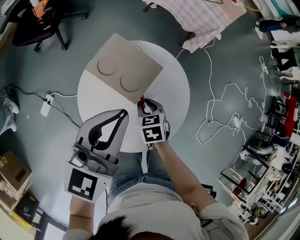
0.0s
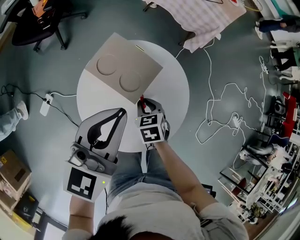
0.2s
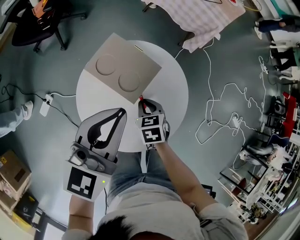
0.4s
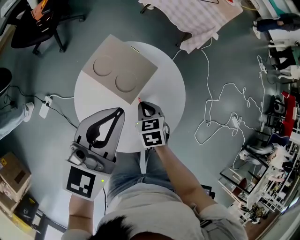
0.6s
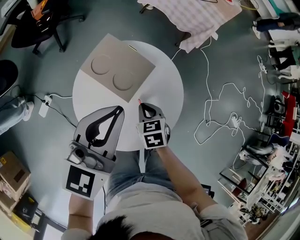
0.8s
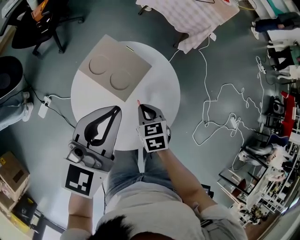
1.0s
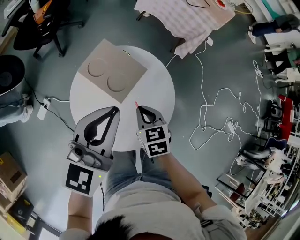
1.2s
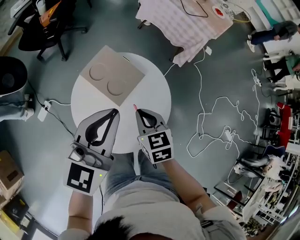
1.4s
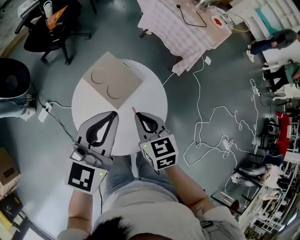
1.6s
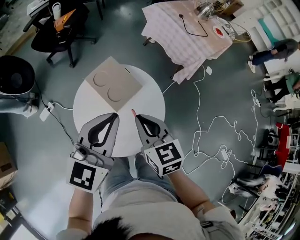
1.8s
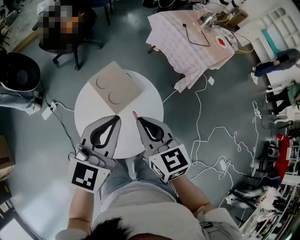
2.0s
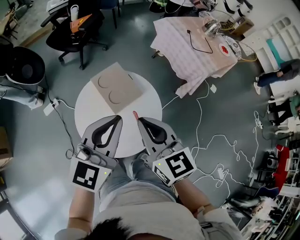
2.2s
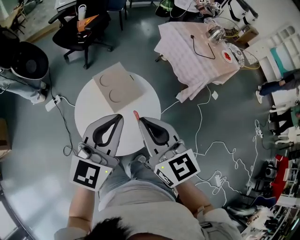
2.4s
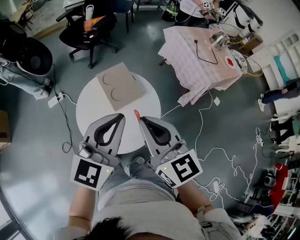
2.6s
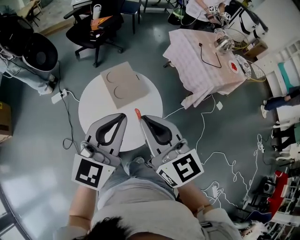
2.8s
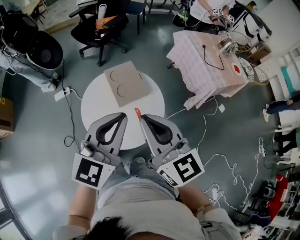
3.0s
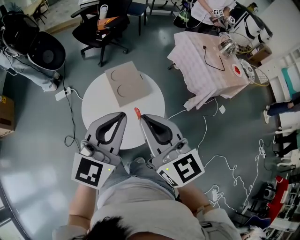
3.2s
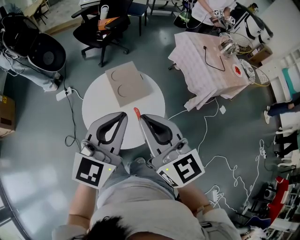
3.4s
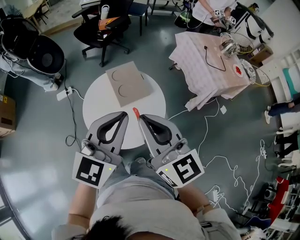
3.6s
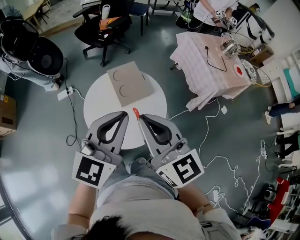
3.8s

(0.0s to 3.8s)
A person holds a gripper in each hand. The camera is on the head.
0.0s - 1.2s: The right gripper goes some 10 cm upward.
1.2s - 2.6s: The left gripper moves about 15 cm, and swivels some 30 degrees. The right gripper goes approximately 30 cm upward, and tilts its fingers roughly 40 degrees upward.
2.6s - 3.8s: The grippers move only a little.

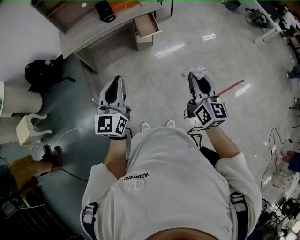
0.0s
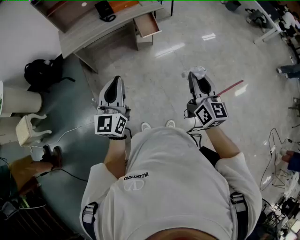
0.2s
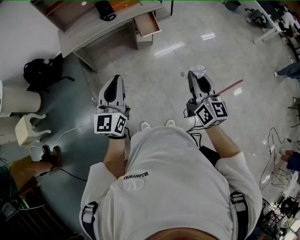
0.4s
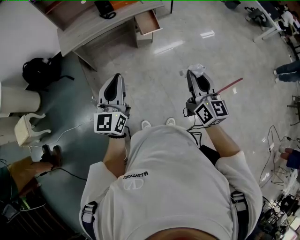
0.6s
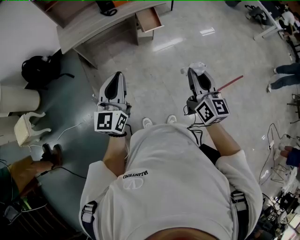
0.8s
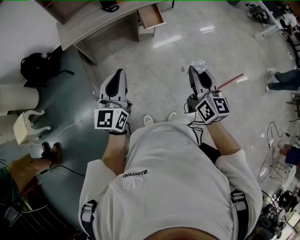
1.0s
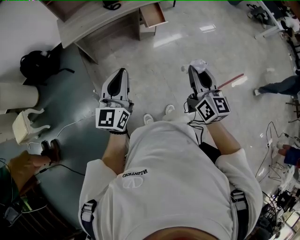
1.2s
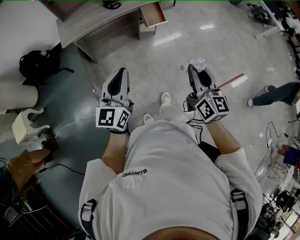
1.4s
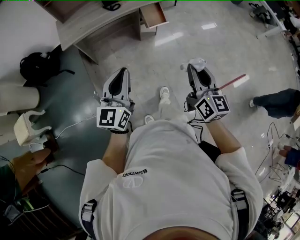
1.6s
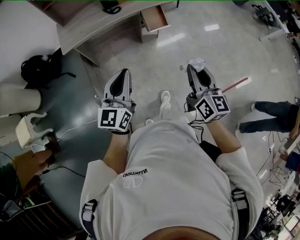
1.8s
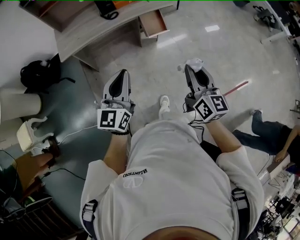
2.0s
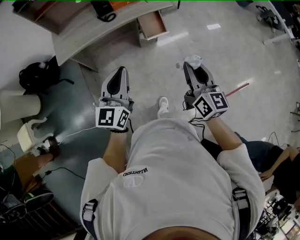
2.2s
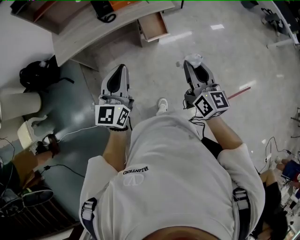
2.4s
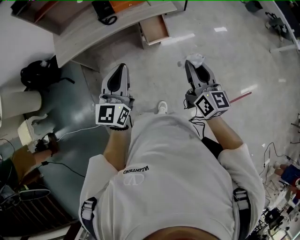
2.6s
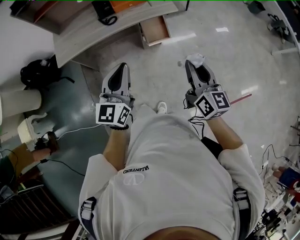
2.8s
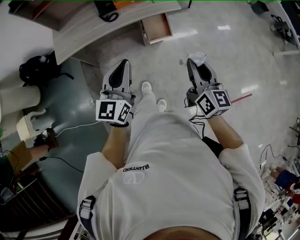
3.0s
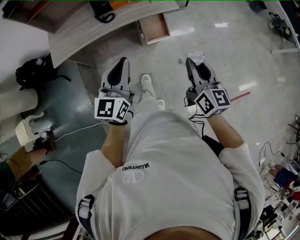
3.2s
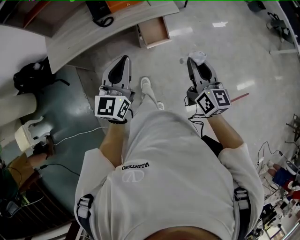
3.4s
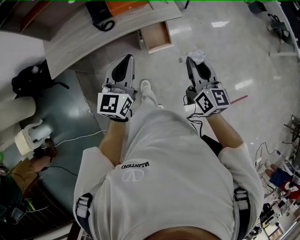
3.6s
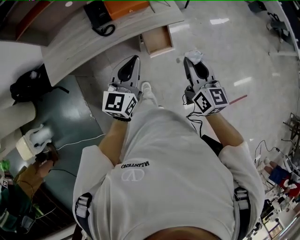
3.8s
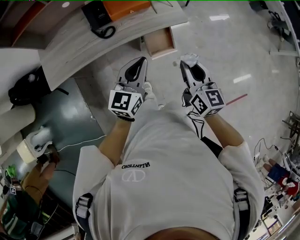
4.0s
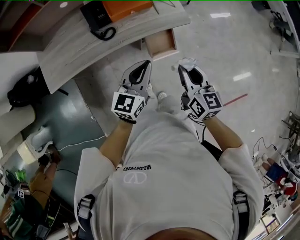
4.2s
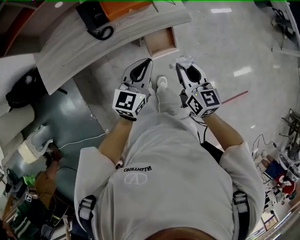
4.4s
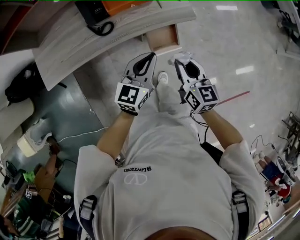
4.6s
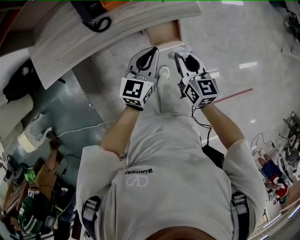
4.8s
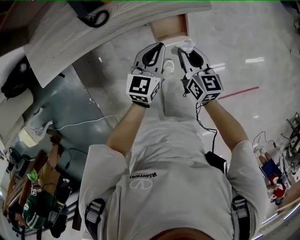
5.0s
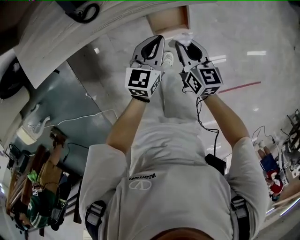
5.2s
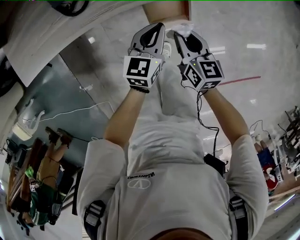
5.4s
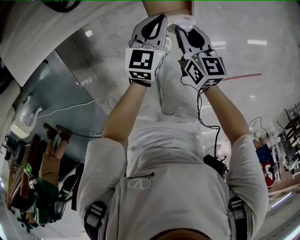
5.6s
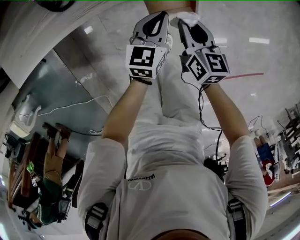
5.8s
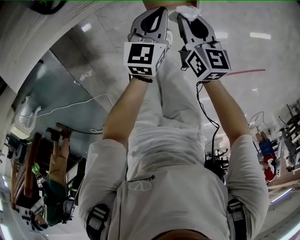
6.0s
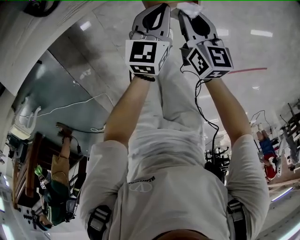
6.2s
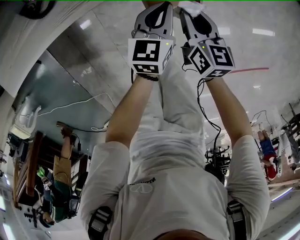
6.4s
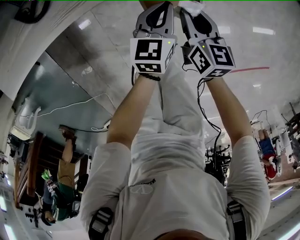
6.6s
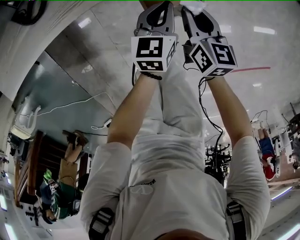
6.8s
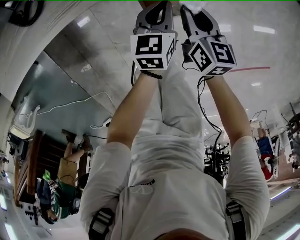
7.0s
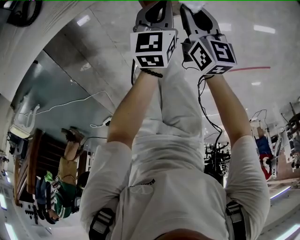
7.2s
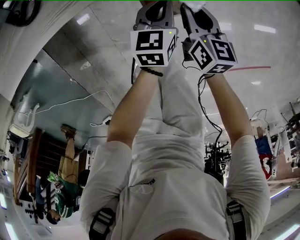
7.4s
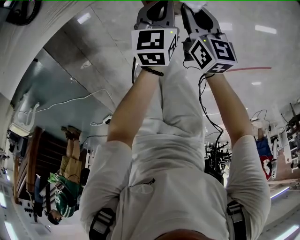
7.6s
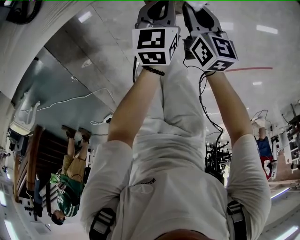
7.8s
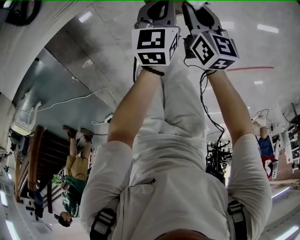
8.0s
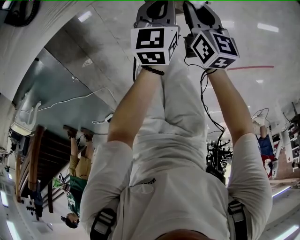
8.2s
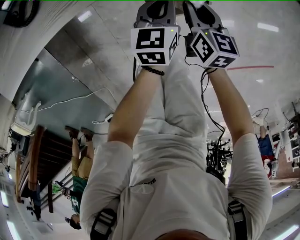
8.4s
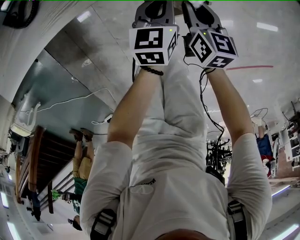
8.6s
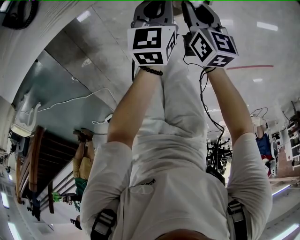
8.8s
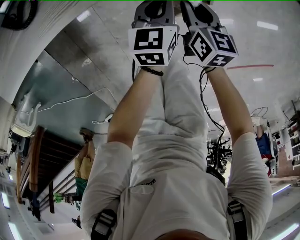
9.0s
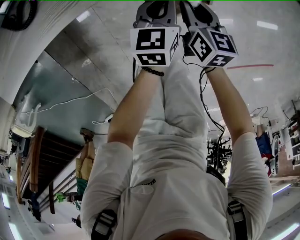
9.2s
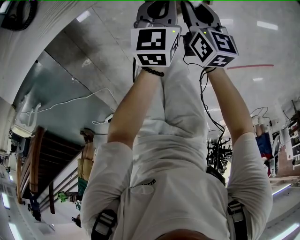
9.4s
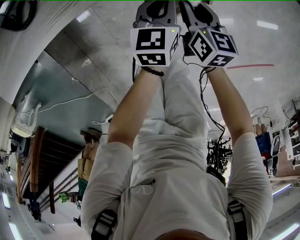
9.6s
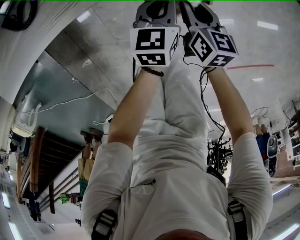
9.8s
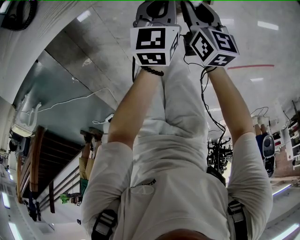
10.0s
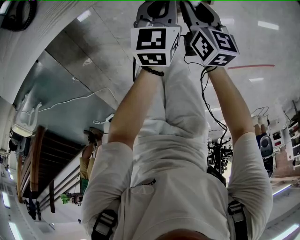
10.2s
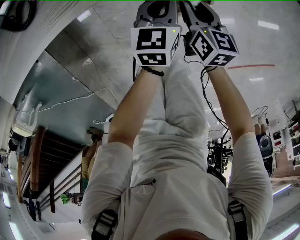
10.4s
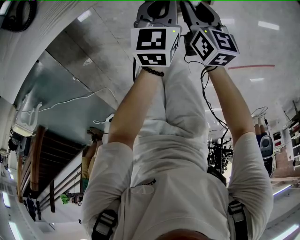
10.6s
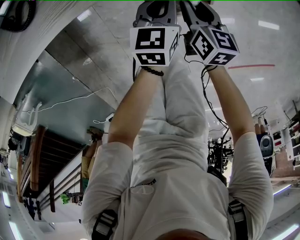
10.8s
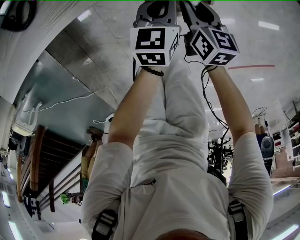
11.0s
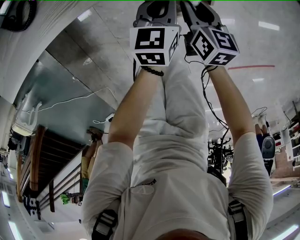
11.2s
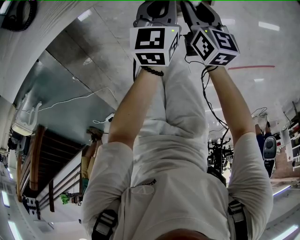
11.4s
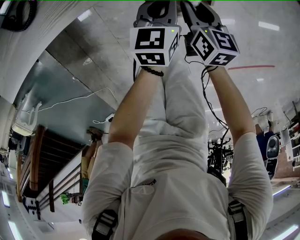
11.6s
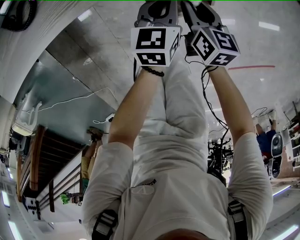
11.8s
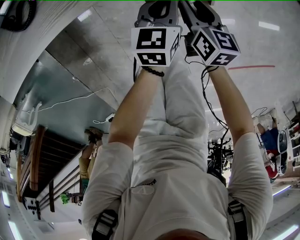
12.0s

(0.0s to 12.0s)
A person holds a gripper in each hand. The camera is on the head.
0.0s - 1.6s: The left gripper shifts roughly 5 cm to the left, while the right gripper is displaced to the left and forward by roughly 10 cm.
1.6s - 3.0s: Both grippers travel together forward, approximately 30 cm.
3.0s - 4.4s: The left gripper heads forward and downward, covering approximately 30 cm, and swivels approximately 20 degrees, while the right gripper shifts some 30 cm forward, downward and to the left.
4.4s - 6.0s: The grippers both shift downward by roughly 30 cm. The left gripper swivels approximately 20 degrees.
6.0s - 7.6s: Both grippers move downward, some 10 cm.
7.6s - 9.0s: The grippers make only small movements.
9.0s - 12.0s: Both grippers stay put.

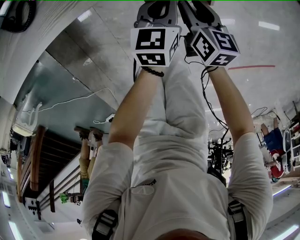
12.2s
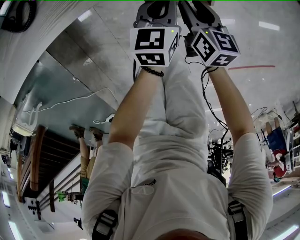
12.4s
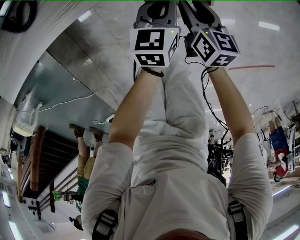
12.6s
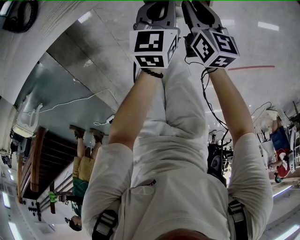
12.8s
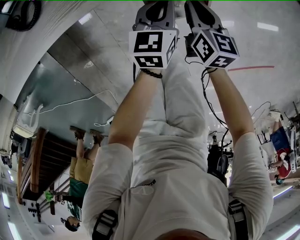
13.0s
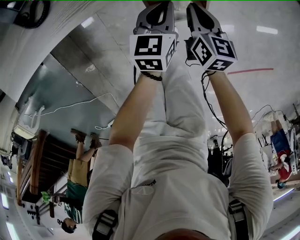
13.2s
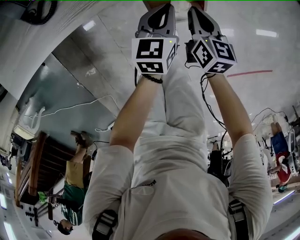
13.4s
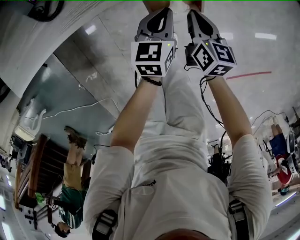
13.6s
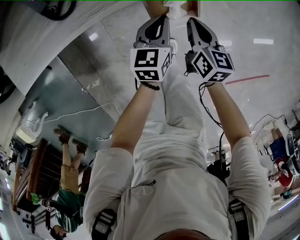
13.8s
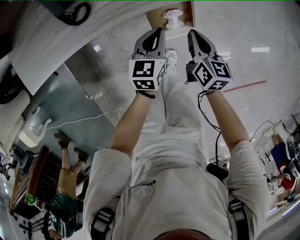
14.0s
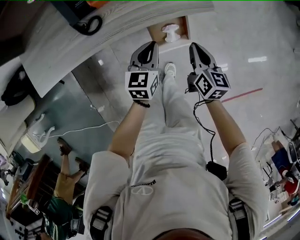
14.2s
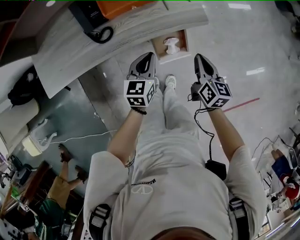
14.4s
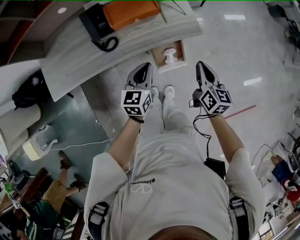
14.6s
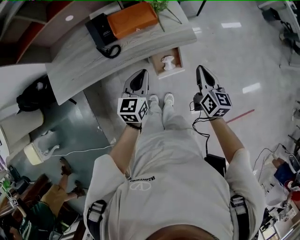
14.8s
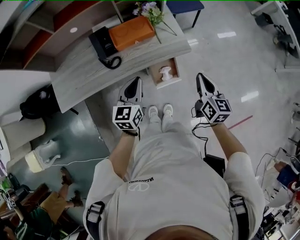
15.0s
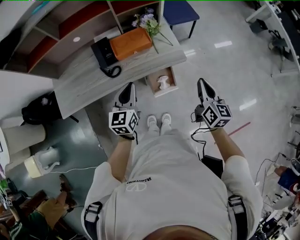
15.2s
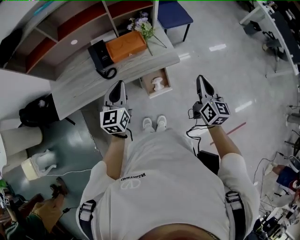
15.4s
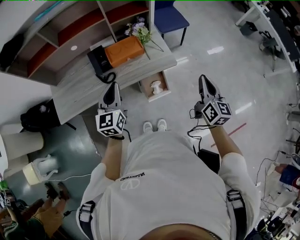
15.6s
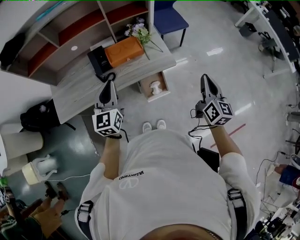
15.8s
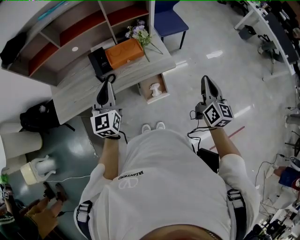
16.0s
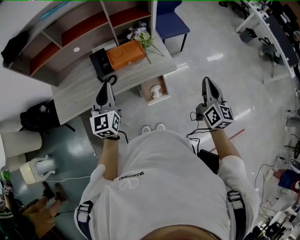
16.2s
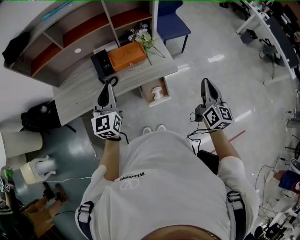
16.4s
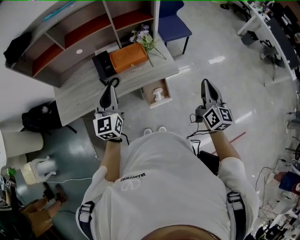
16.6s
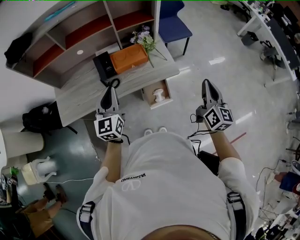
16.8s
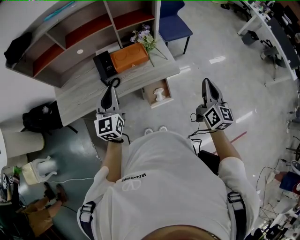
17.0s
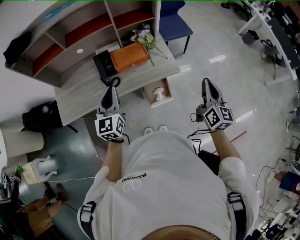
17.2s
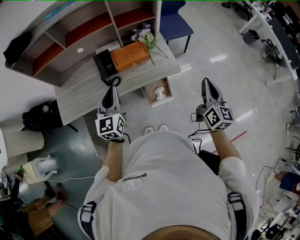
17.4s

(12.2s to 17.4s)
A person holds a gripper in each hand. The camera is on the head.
12.2s - 14.0s: The two grippers go approximately 15 cm upward. The right gripper closes up.
14.0s - 15.6s: The two grippers go approximately 40 cm upward. The right gripper changes its angle by approximately 30 degrees; the left gripper rotates some 30 degrees.
15.6s - 17.4s: The grippers stay close to where they were, moving slightly.

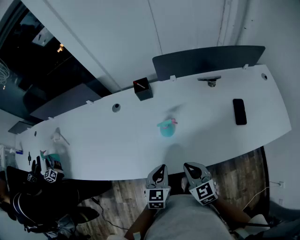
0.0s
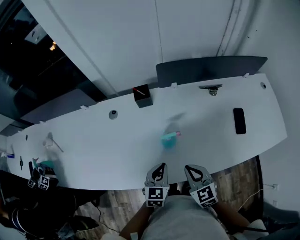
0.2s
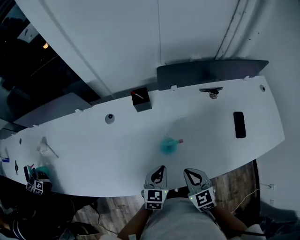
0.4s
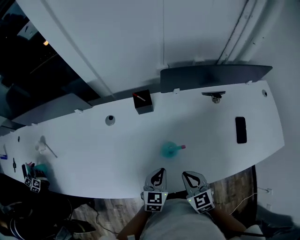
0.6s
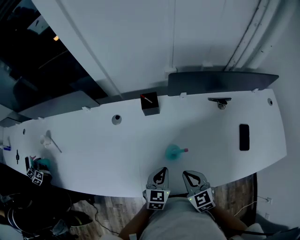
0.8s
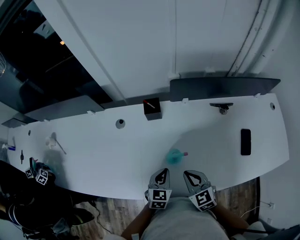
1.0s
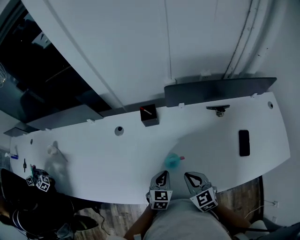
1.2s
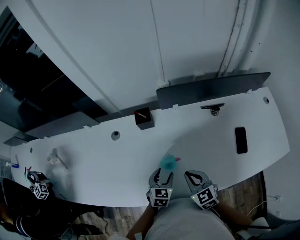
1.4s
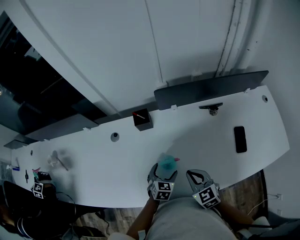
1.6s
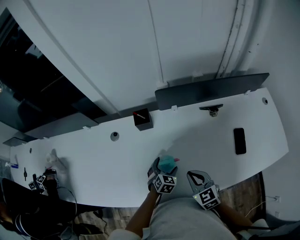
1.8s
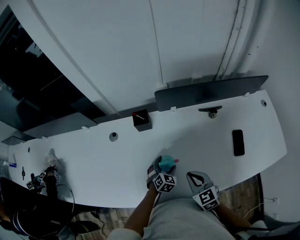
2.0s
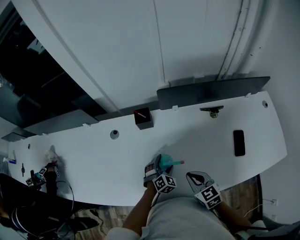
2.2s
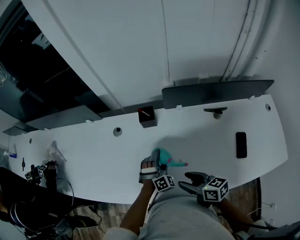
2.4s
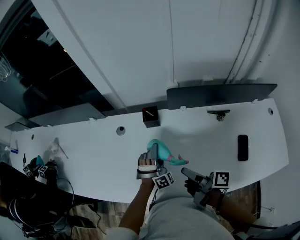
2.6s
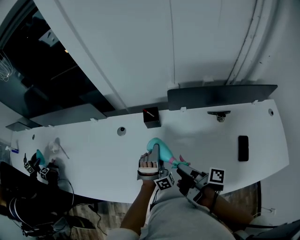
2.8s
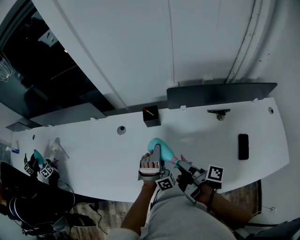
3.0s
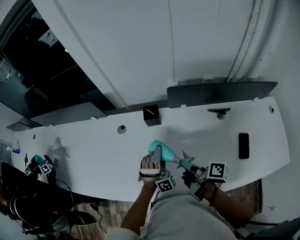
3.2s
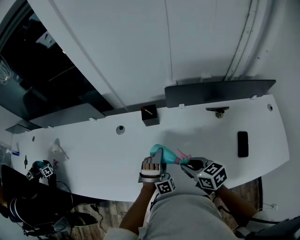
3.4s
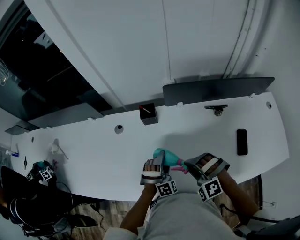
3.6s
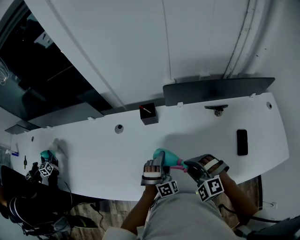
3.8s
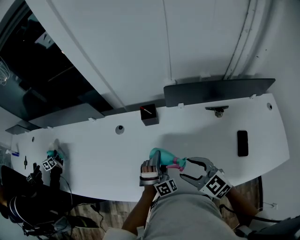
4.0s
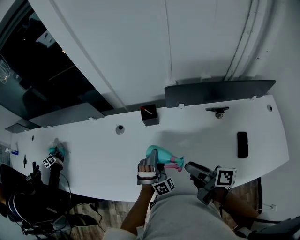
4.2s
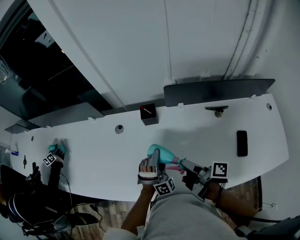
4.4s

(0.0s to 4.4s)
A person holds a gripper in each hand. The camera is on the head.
0.0s - 1.4s: The right gripper moves forward, roughly 15 cm; the left gripper moves forward and downward, some 15 cm, and opens.
1.4s - 3.0s: The left gripper ends up approximately 15 cm from where it was, rotates around the line of its fingers by some 70 degrees, clockwise from behind, and opens. Meanwhile the right gripper moves approximately 5 cm, twists about 100 degrees clockwise, seen from behind, and opens up.
3.0s - 4.4s: The right gripper opens its fingers.
